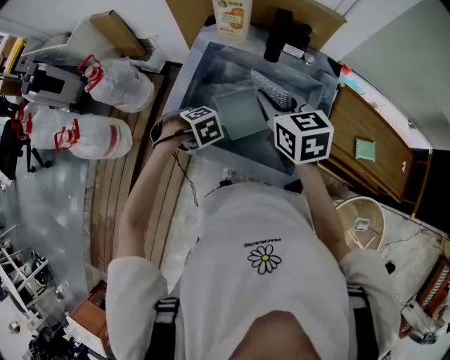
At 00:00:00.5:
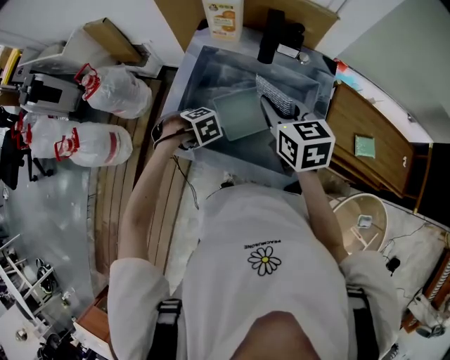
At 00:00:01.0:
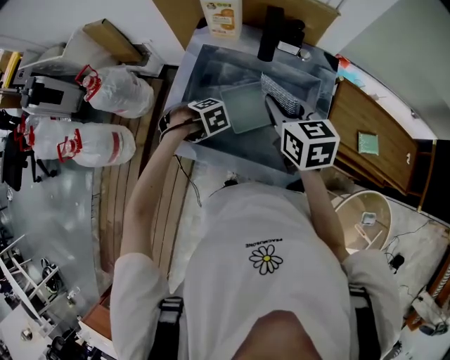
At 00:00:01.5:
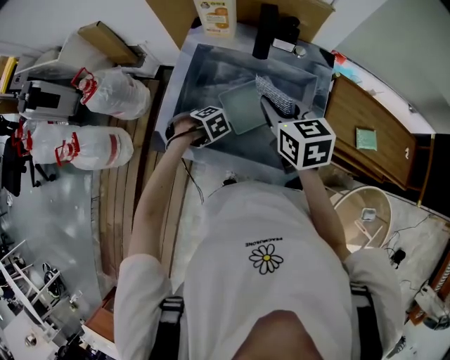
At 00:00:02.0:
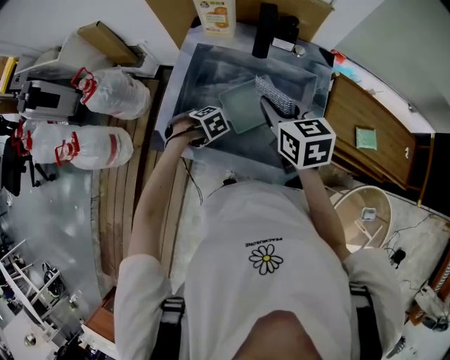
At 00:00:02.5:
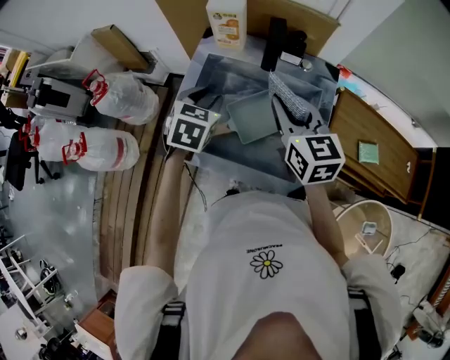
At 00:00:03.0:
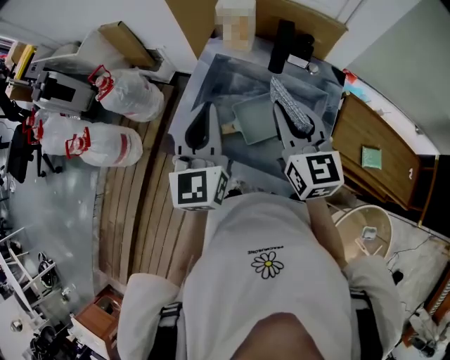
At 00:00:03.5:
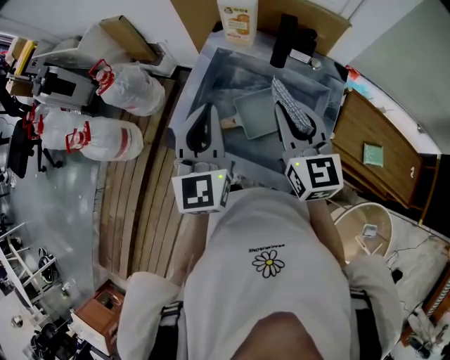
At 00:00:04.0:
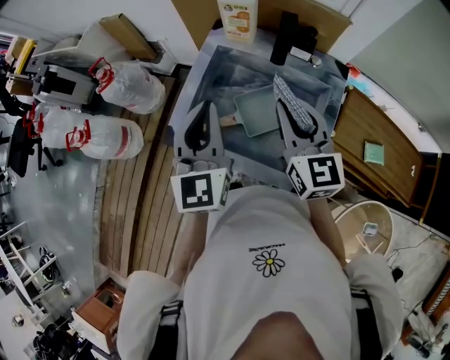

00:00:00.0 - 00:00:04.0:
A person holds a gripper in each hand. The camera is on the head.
00:00:02.0 - 00:00:04.0: The right gripper shifts roughly 10 cm upward, and swivels approximately 30 degrees.

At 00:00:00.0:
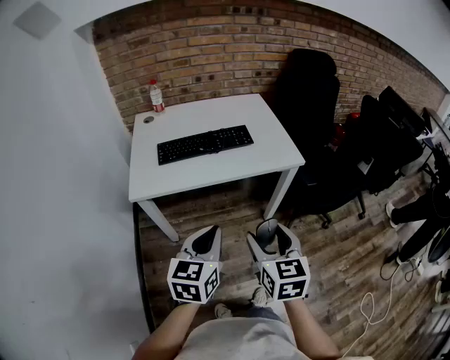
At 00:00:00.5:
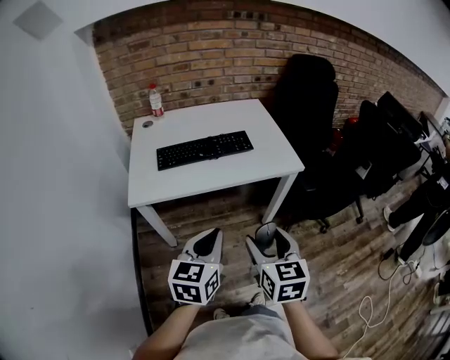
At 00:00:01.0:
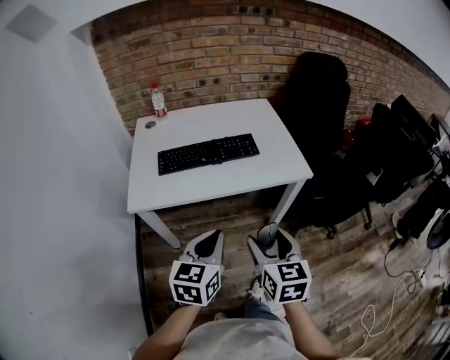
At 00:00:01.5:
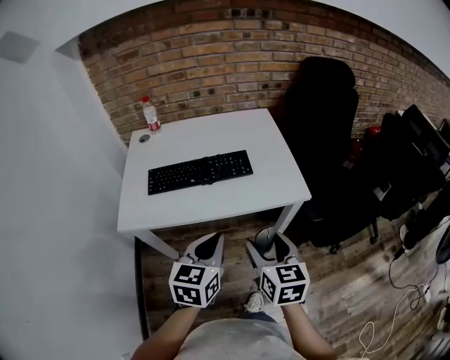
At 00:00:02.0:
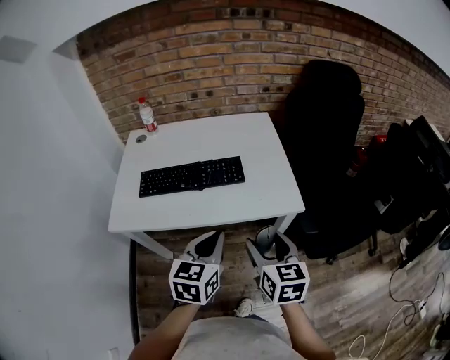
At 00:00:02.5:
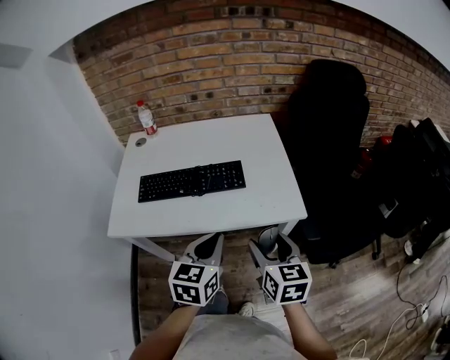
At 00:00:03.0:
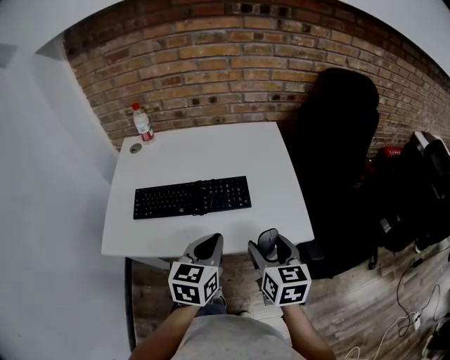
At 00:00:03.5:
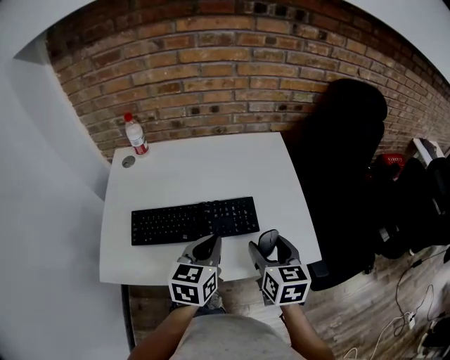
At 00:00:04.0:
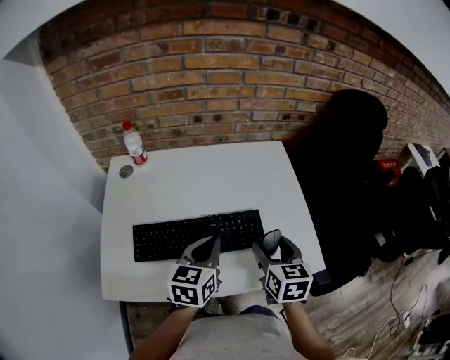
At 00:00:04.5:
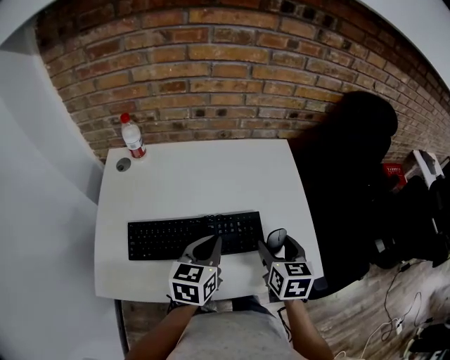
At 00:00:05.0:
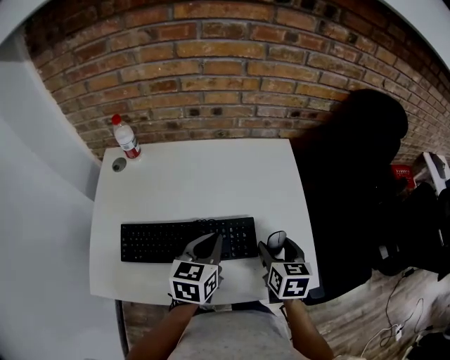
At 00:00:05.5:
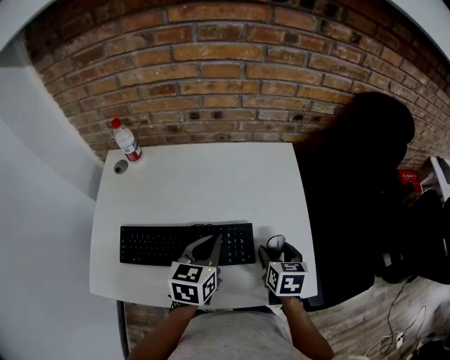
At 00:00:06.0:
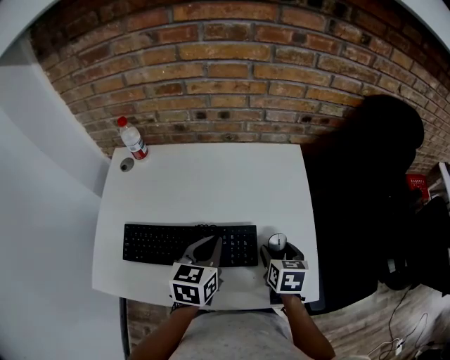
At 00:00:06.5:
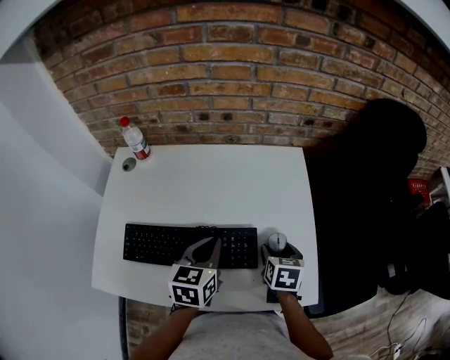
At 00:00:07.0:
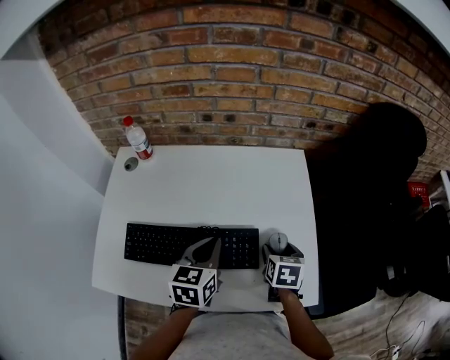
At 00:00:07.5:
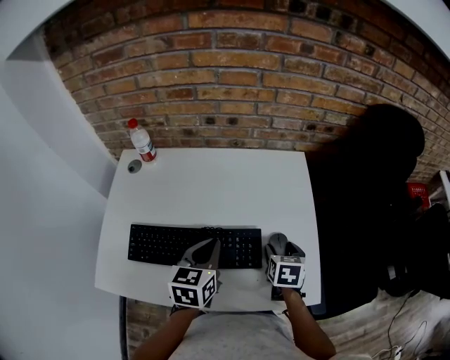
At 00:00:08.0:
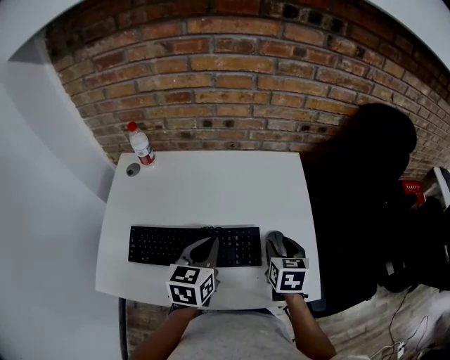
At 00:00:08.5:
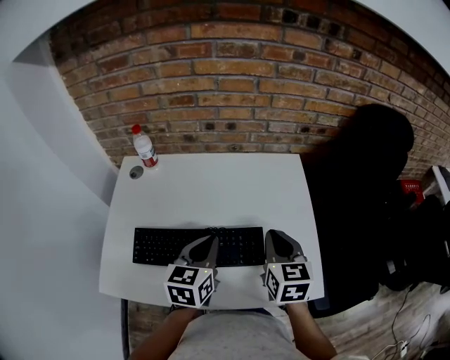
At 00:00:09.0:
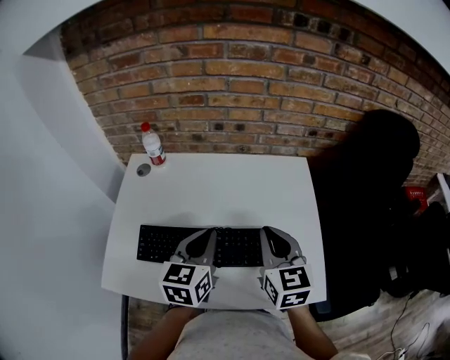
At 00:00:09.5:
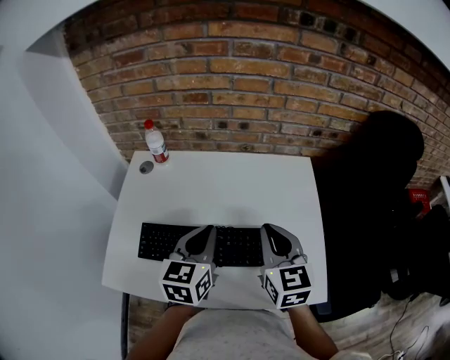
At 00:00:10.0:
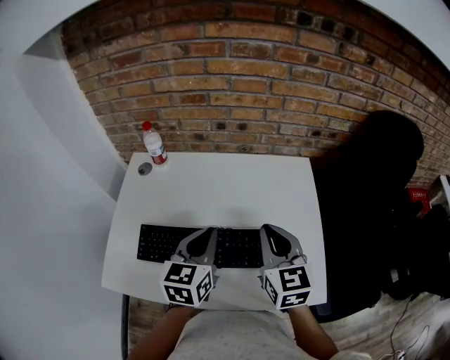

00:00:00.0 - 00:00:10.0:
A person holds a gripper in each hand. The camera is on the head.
00:00:00.0 - 00:00:02.0: The two grippers go some 25 cm forward and to the right.
00:00:02.0 - 00:00:04.0: The right gripper is displaced forward by some 25 cm; the left gripper heads forward and to the left, covering roughly 30 cm.
00:00:04.0 - 00:00:06.0: The left gripper moves forward, approximately 10 cm. The right gripper is displaced downward, forward and to the right by approximately 15 cm.
00:00:06.0 - 00:00:08.0: The grippers make only small movements.
00:00:08.0 - 00:00:10.0: The right gripper travels upward and to the left by approximately 15 cm, rotates about 30 degrees, and closes up. Meanwhile the left gripper shifts some 5 cm upward.

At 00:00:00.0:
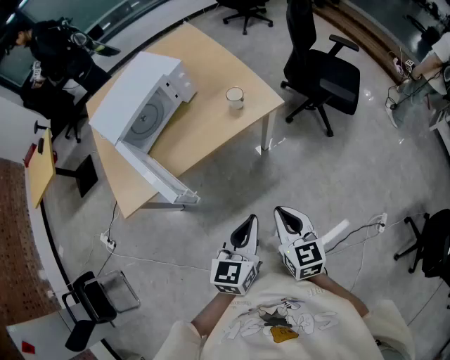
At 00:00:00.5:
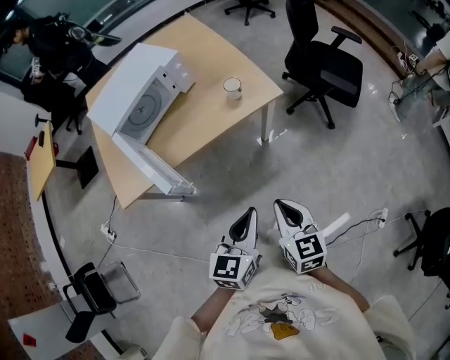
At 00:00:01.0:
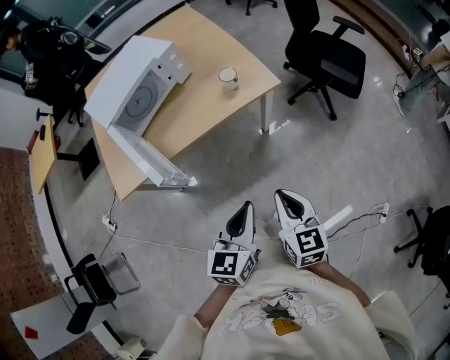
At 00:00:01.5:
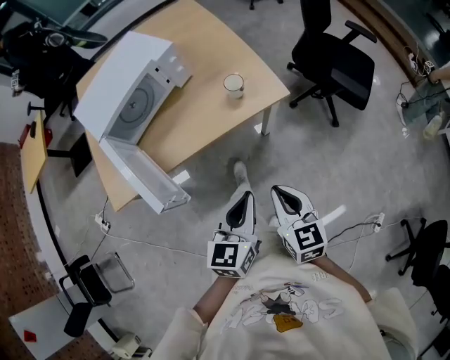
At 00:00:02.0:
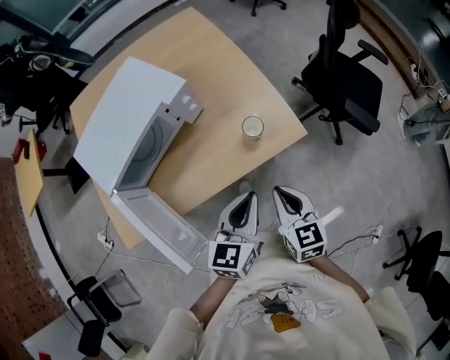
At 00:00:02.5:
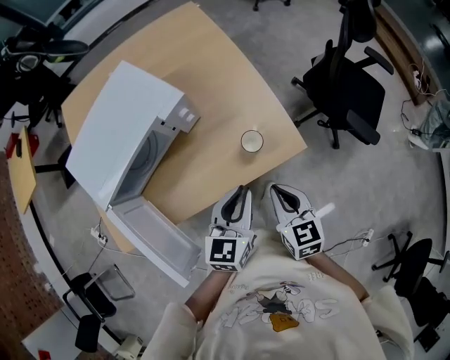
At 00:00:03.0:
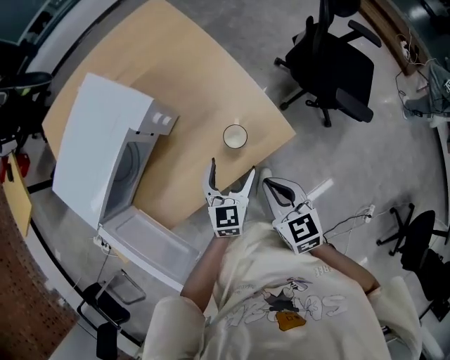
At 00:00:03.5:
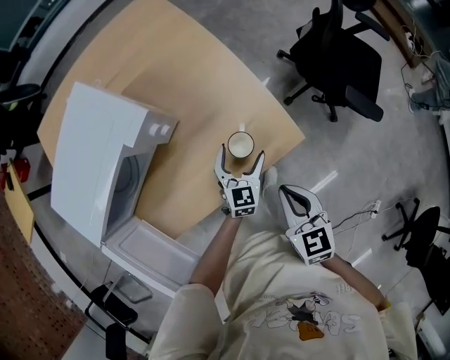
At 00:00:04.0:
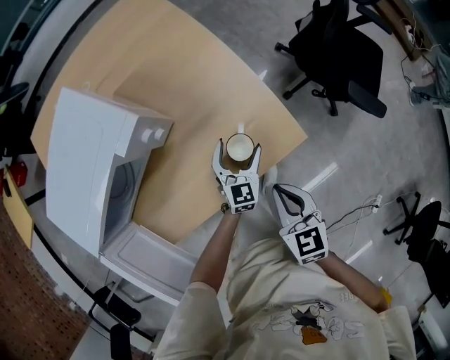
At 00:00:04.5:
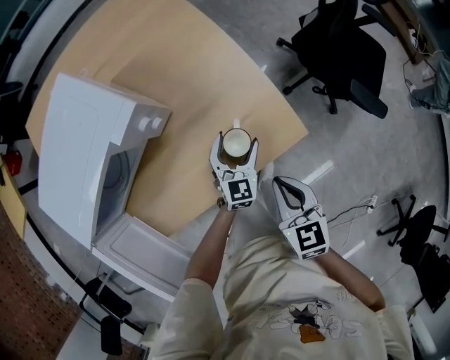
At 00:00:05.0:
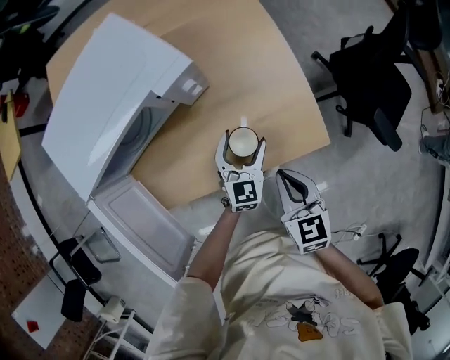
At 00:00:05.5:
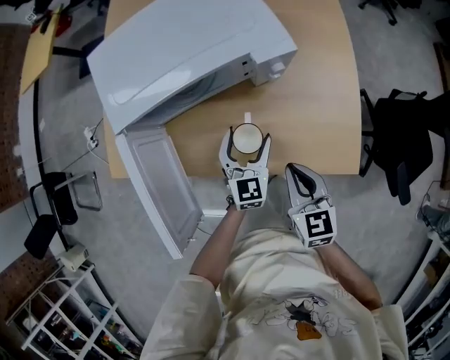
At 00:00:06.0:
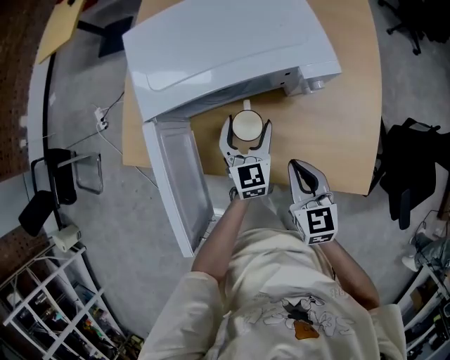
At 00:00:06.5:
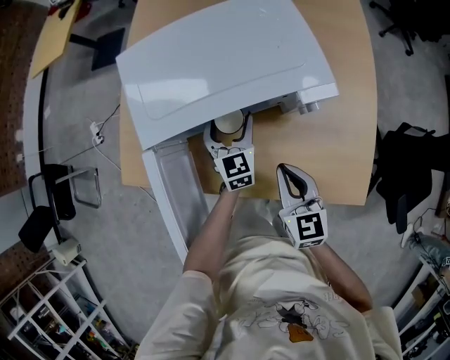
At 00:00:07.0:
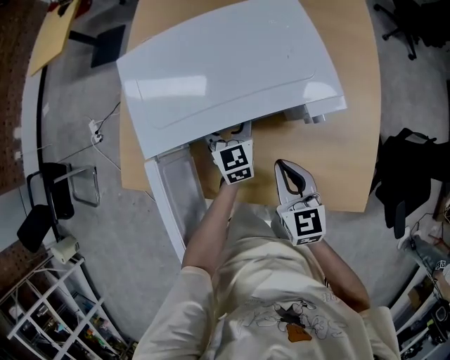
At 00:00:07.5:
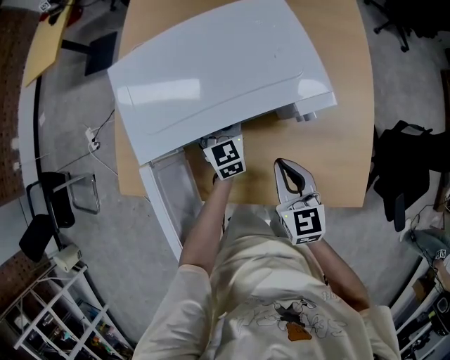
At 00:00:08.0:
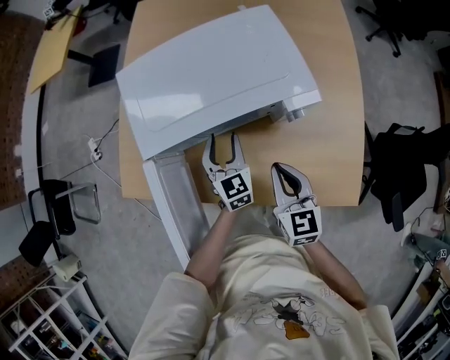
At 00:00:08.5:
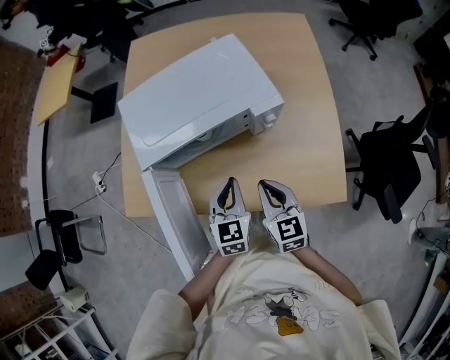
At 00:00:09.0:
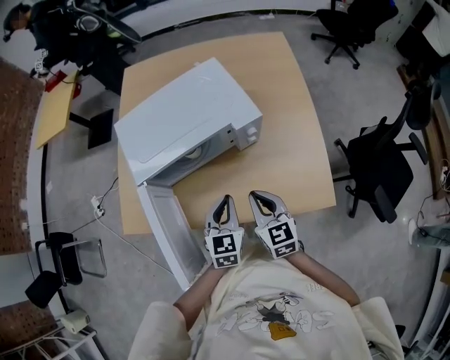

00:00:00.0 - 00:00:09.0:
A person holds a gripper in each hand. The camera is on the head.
00:00:00.0 - 00:00:02.0: The grippers both shift forward by approximately 30 cm.
00:00:02.0 - 00:00:04.5: The right gripper goes some 15 cm forward and downward, while the left gripper shifts roughly 30 cm downward and forward, rotates some 20 degrees, and opens.
00:00:04.5 - 00:00:07.0: The right gripper shifts by roughly 30 cm, and rotates some 30 degrees; the left gripper changes place by roughly 40 cm, and swivels approximately 50 degrees.
00:00:07.0 - 00:00:09.0: The right gripper moves backward, about 10 cm; the left gripper moves backward, some 25 cm, rotates some 20 degrees, and closes up.

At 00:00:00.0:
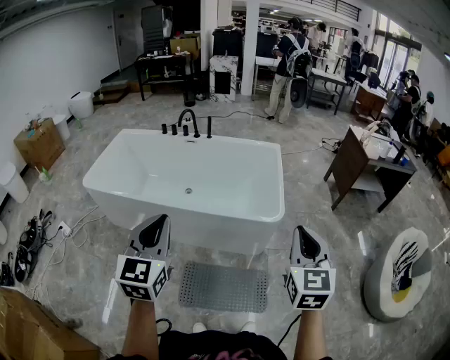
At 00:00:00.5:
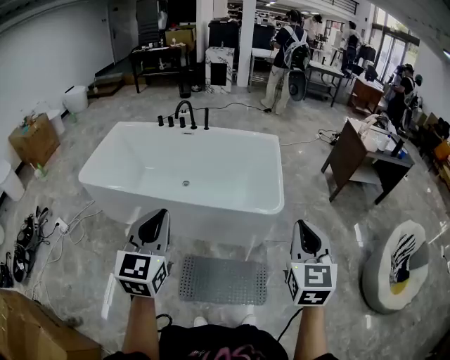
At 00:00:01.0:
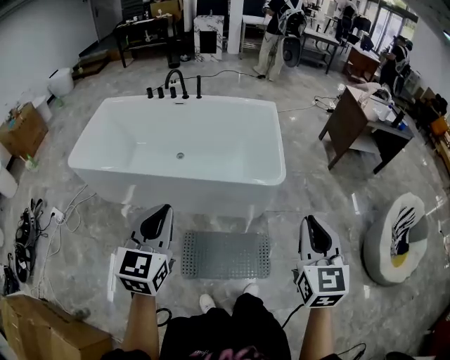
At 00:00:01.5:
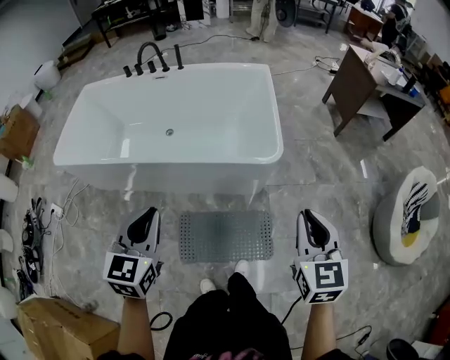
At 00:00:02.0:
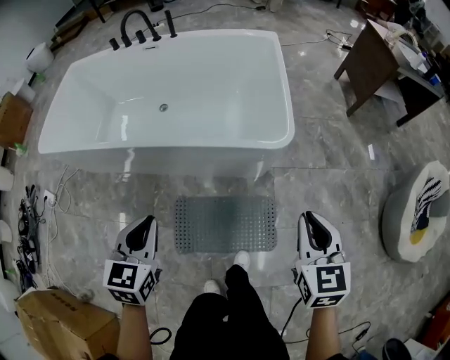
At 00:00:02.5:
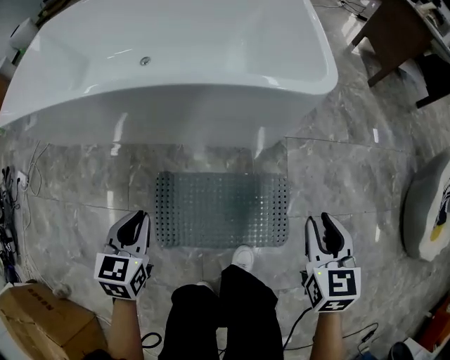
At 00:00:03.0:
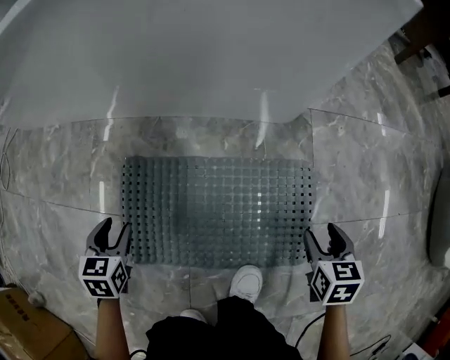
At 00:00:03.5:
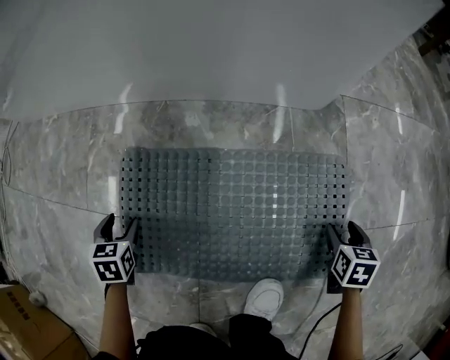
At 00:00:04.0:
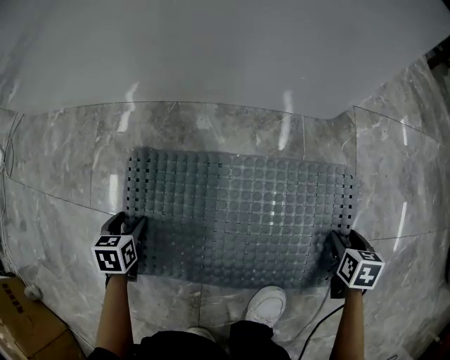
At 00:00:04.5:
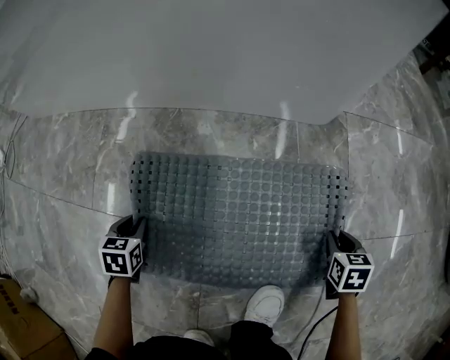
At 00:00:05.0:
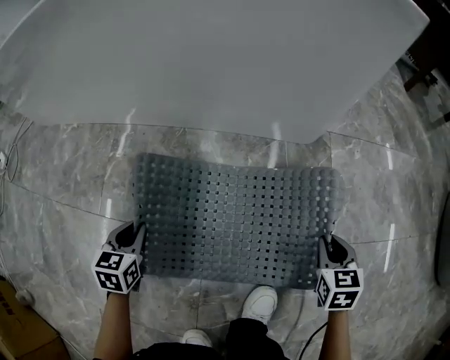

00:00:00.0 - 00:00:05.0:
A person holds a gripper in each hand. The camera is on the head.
00:00:00.0 - 00:00:02.5: Both grippers move downward, approximately 60 cm. The left gripper points its fingers some 40 degrees further downward. Meanwhile the right gripper rotates about 30 degrees, and opens up.
00:00:02.5 - 00:00:05.0: The grippers both shift downward by about 40 cm. The right gripper opens and closes again. Meanwhile the left gripper opens and closes again.
